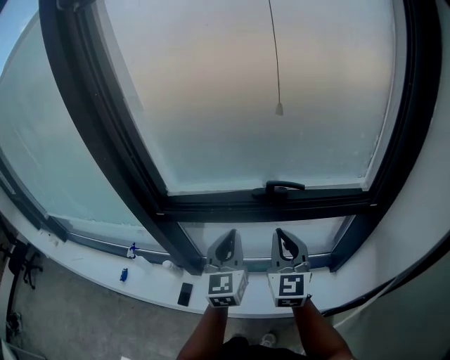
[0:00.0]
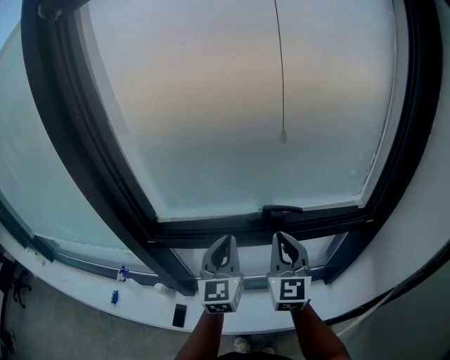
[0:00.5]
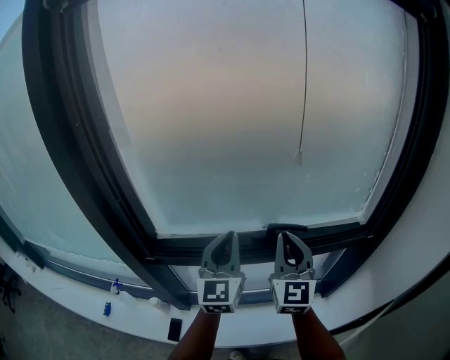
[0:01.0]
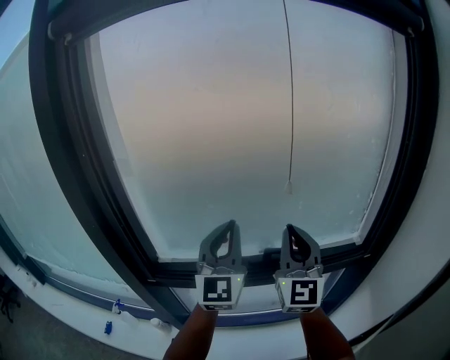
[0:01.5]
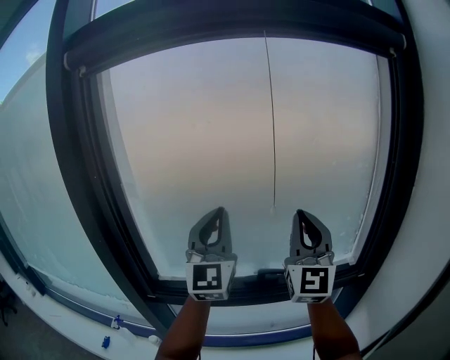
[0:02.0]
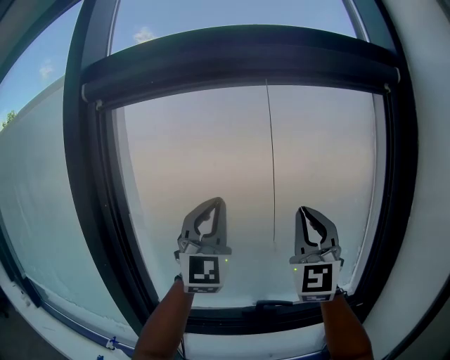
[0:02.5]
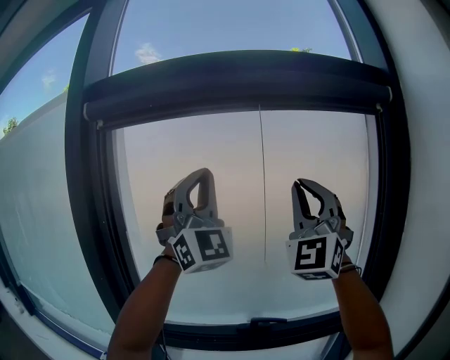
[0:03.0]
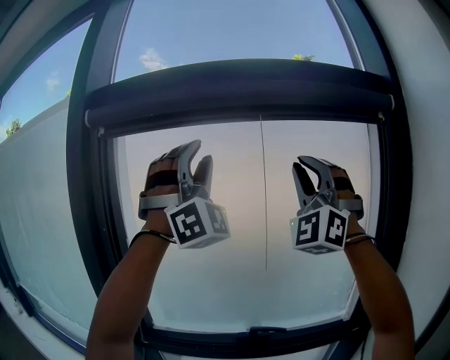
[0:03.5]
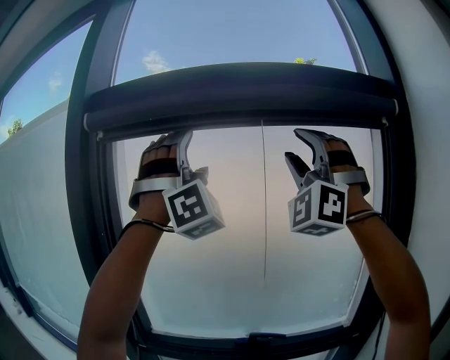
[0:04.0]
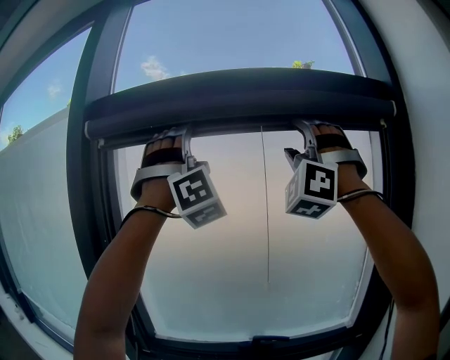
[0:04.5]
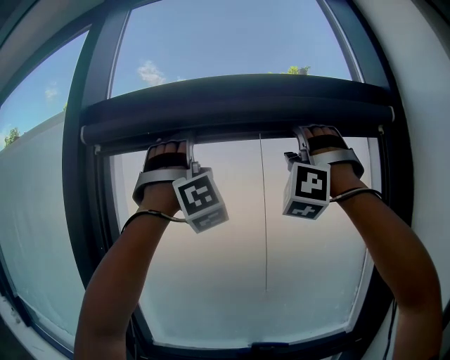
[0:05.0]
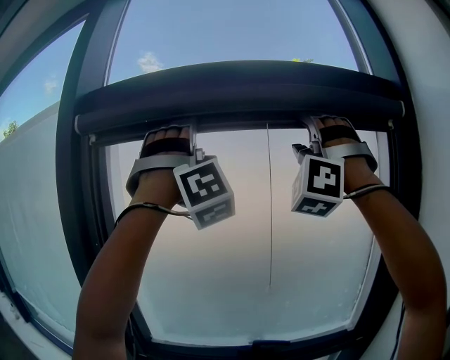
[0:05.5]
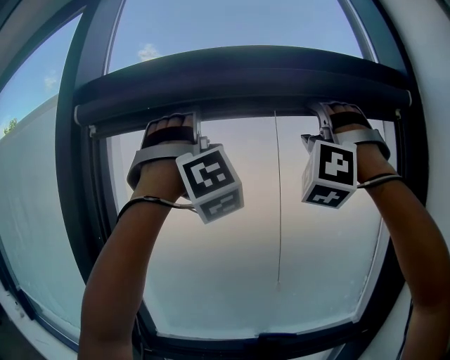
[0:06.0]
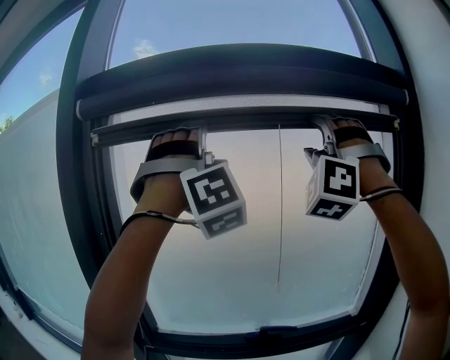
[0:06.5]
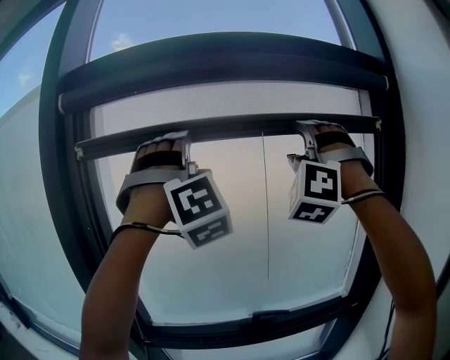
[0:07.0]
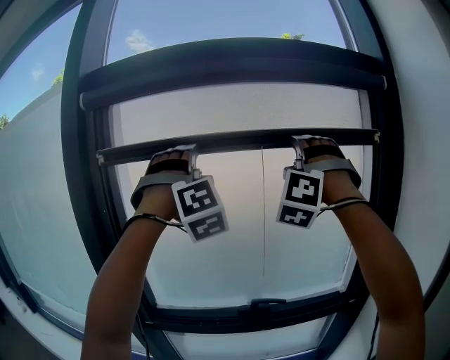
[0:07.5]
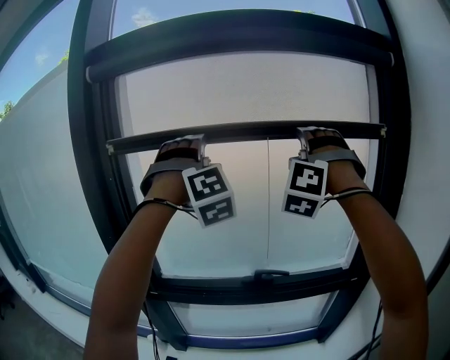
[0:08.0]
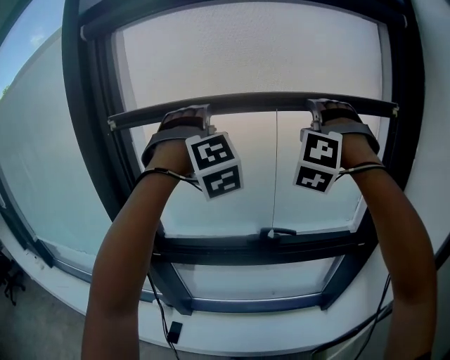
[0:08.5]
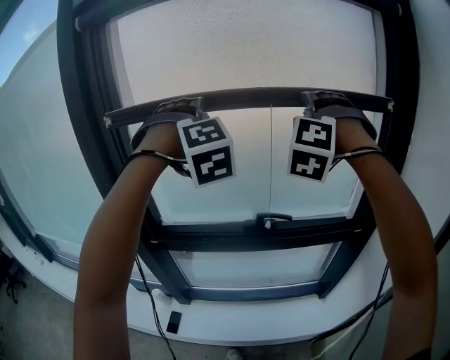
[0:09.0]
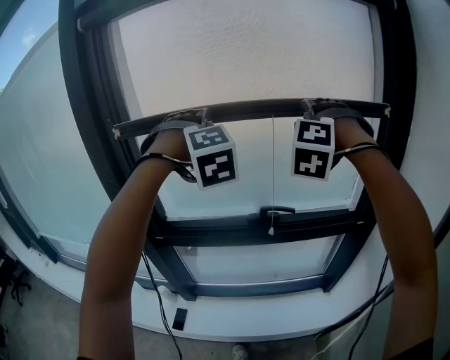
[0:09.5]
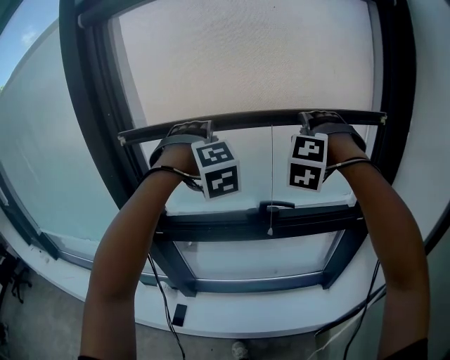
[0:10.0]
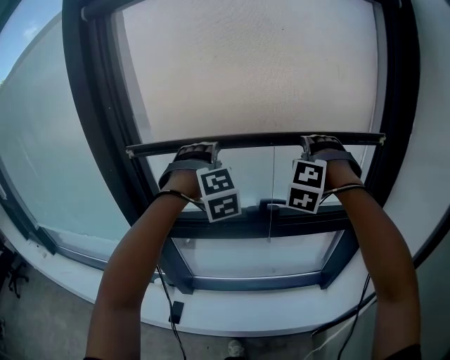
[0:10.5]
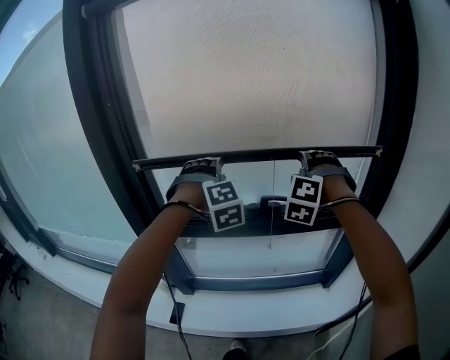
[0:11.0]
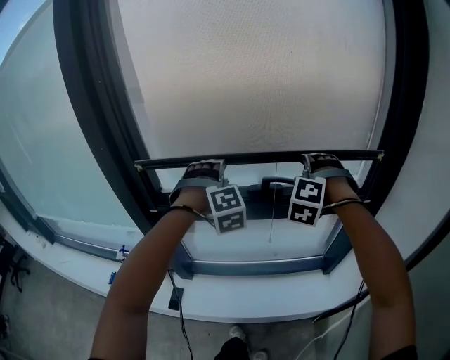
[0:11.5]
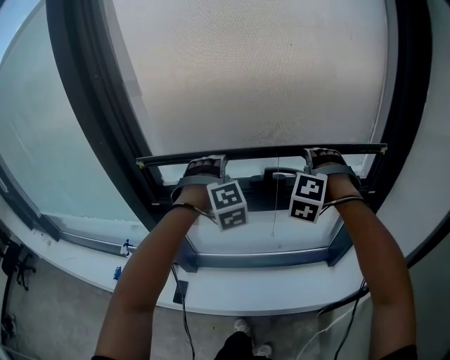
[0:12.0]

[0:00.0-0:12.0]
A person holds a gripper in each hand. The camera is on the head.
0.0 to 2.0 s: The left gripper heads upward and forward, covering about 30 cm, and turns by approximately 40 degrees. Meanwhile the right gripper is displaced upward by approximately 30 cm, and swivels roughly 30 degrees.
2.0 to 4.0 s: Both grippers travel together upward, roughly 30 cm. The right gripper rotates around the line of its fingers by some 70 degrees, counterclockwise from behind, and opens its fingers. The left gripper twists roughly 70 degrees clockwise, seen from behind, and opens.
4.0 to 6.0 s: The right gripper ends up approximately 5 cm from where it was.
6.0 to 8.0 s: The grippers both shift downward by about 20 cm. The left gripper changes its angle by approximately 20 degrees; the right gripper turns by roughly 20 degrees.
8.0 to 10.0 s: Both grippers move downward, approximately 15 cm. The left gripper swivels approximately 20 degrees; the right gripper changes its angle by some 20 degrees.
10.0 to 12.0 s: The grippers both shift downward by about 20 cm.

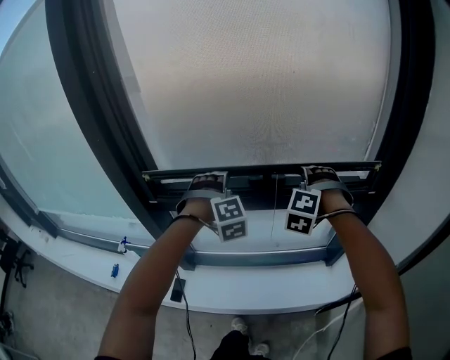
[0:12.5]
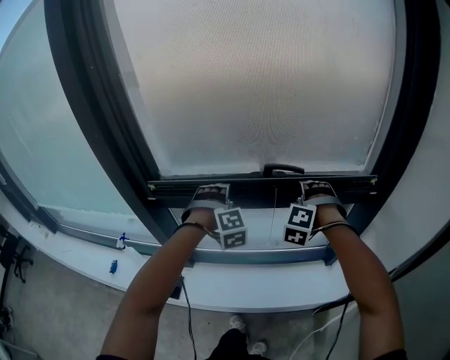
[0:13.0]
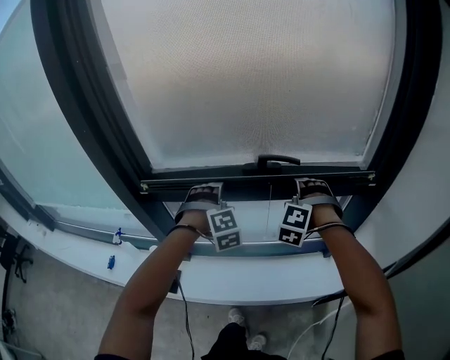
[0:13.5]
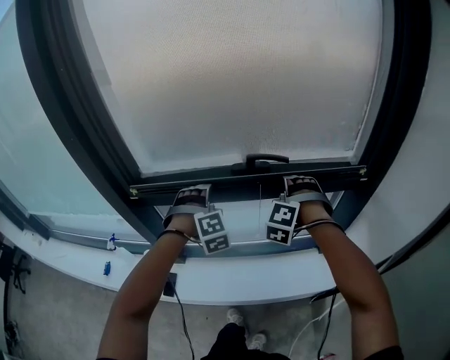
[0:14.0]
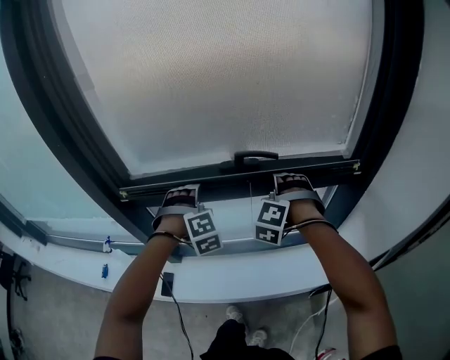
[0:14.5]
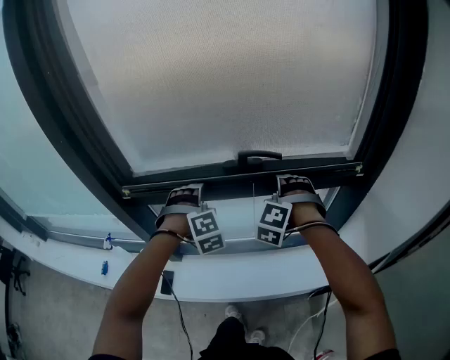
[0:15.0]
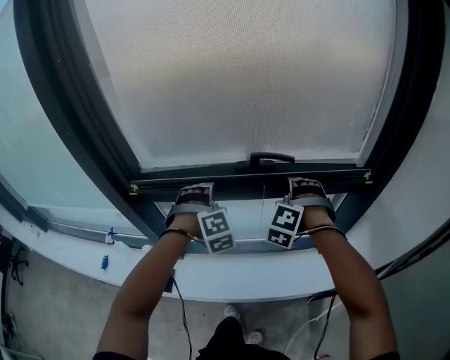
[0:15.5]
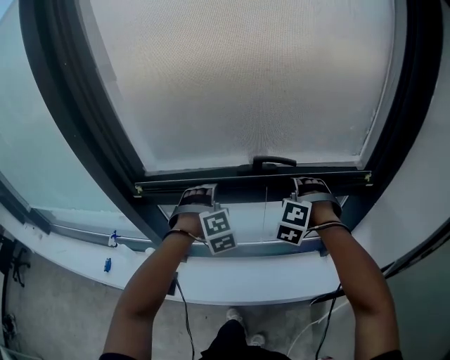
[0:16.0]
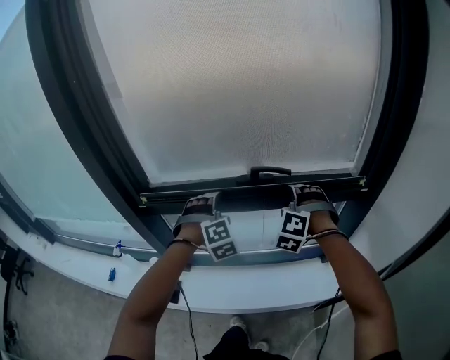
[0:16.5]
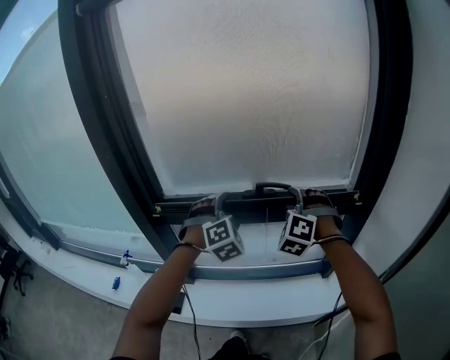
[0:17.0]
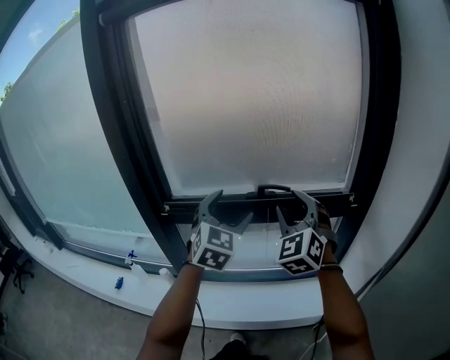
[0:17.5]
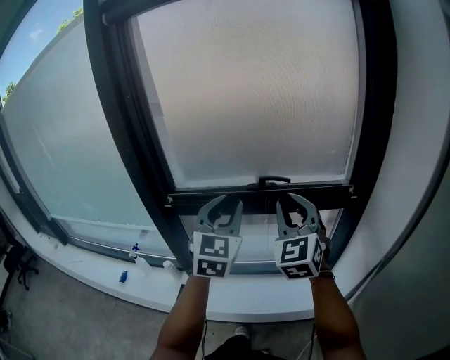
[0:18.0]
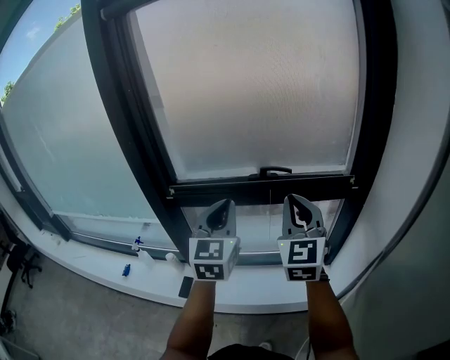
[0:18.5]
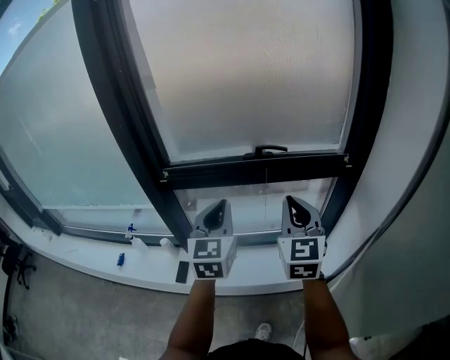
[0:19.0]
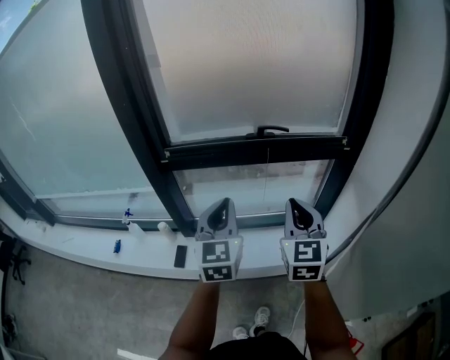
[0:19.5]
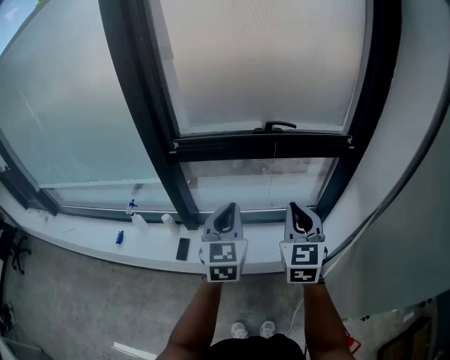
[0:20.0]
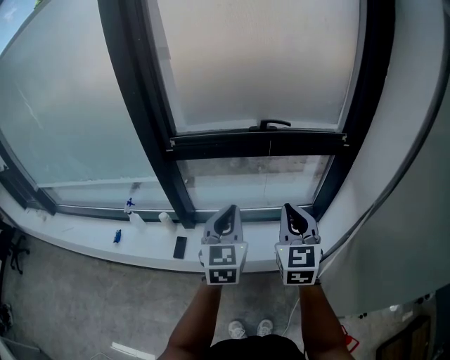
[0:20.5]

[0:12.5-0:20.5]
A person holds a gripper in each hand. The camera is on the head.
12.5 to 14.5 s: Both grippers move downward, some 10 cm.
14.5 to 16.5 s: There are only small adjustments of the grippers.
16.5 to 18.5 s: Both grippers travel together backward and upward, about 30 cm. The right gripper twists some 60 degrees clockwise, seen from behind, and closes up; the left gripper rolls counterclockwise, seen from behind, by approximately 60 degrees, and closes up.
18.5 to 20.5 s: Both grippers travel together backward and downward, roughly 15 cm.

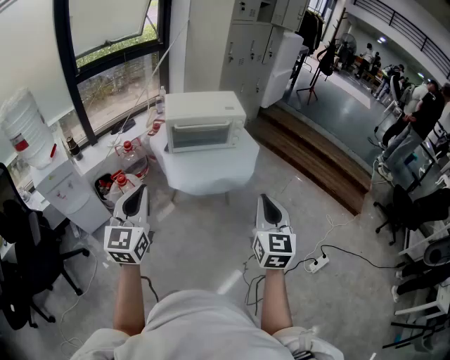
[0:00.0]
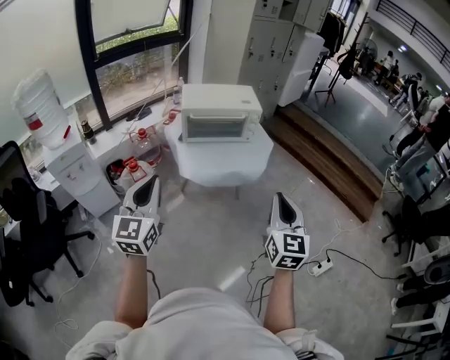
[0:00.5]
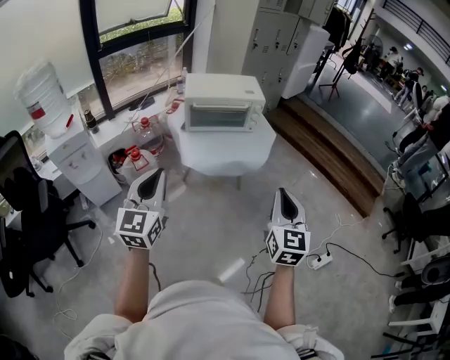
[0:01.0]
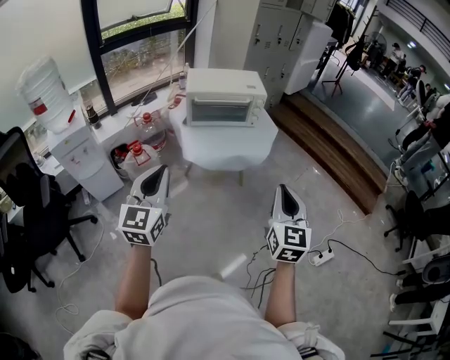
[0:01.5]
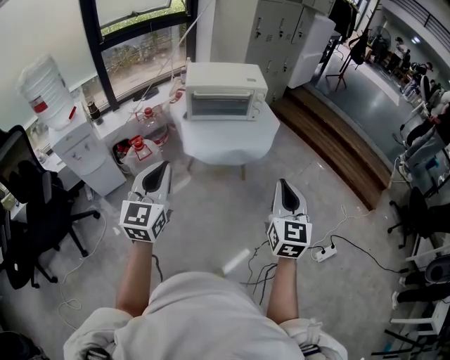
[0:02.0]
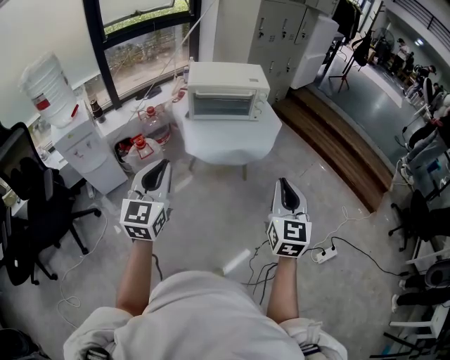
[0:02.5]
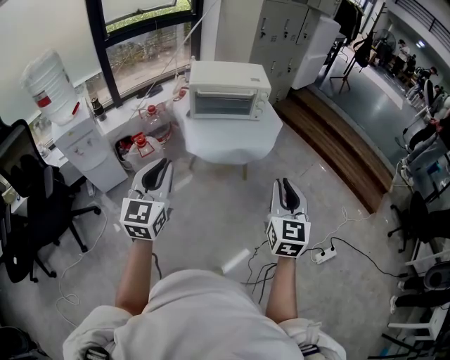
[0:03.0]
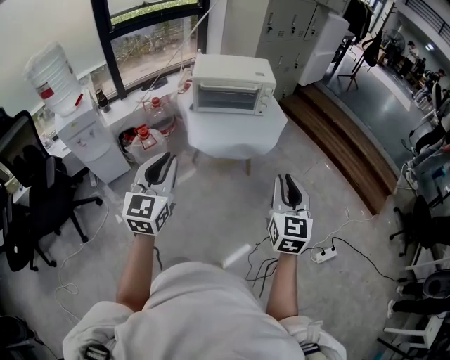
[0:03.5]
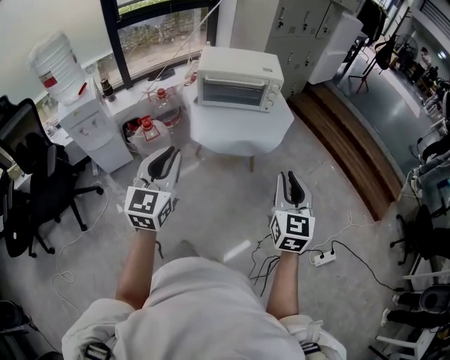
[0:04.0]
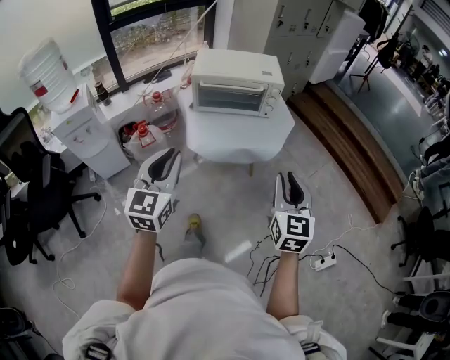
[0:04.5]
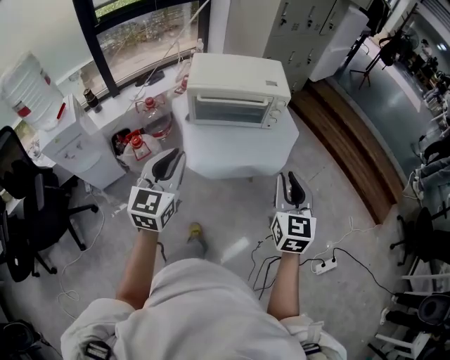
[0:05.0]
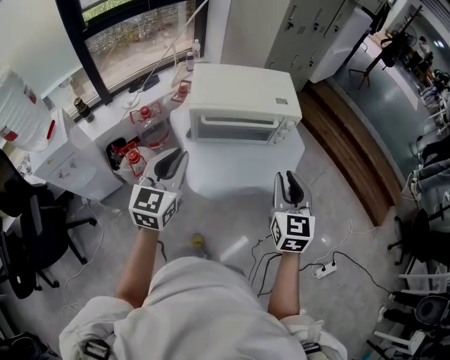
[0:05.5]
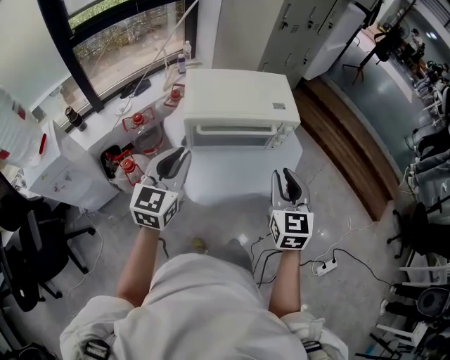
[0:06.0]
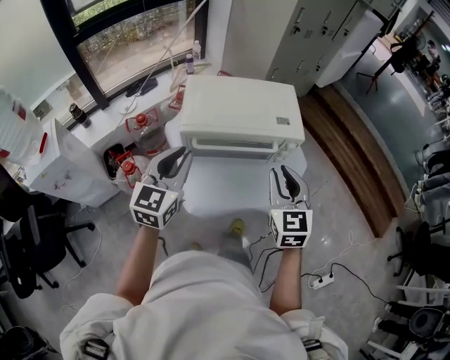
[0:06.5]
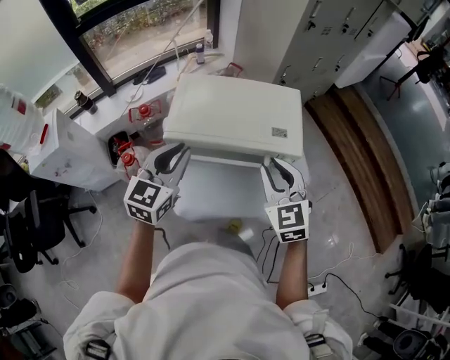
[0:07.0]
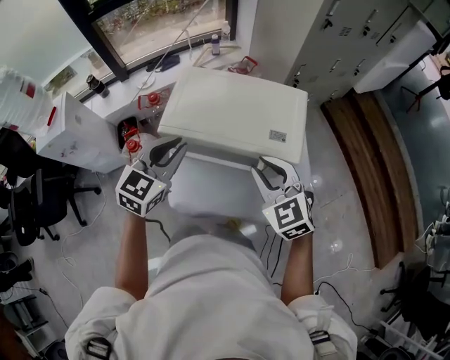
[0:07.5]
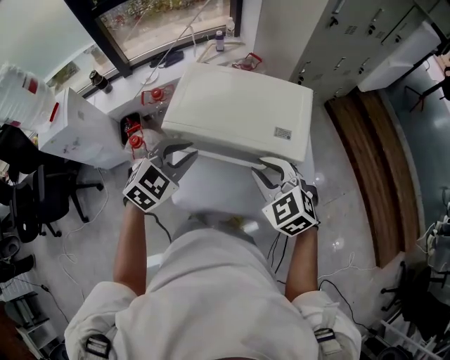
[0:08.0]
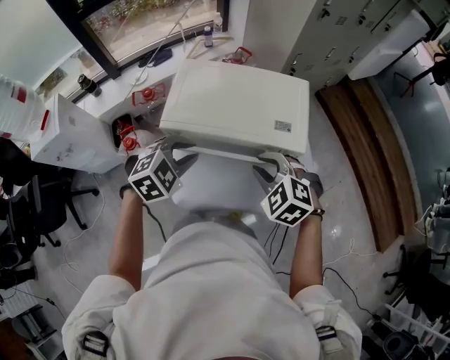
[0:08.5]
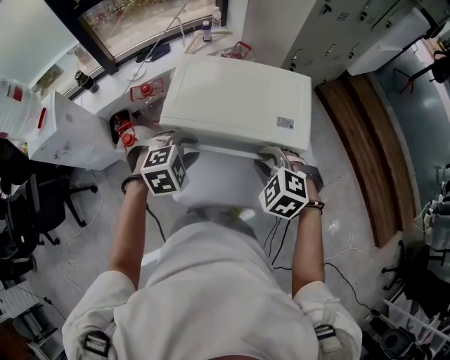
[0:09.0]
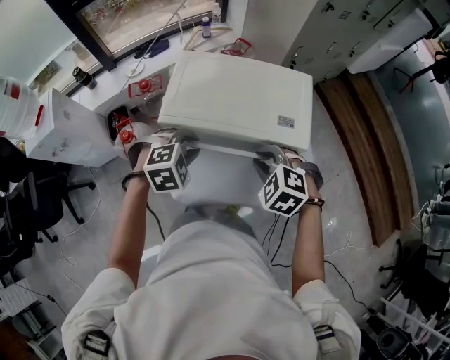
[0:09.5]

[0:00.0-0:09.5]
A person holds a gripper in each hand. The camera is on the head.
0.0 to 2.0 s: The right gripper changes place by some 5 cm. The left gripper travels to the right by approximately 5 cm.
2.0 to 4.0 s: The right gripper shifts by approximately 5 cm.
4.0 to 5.5 s: The two grippers go roughly 35 cm forward.
5.5 to 7.5 s: The right gripper changes place by approximately 25 cm, and turns by about 50 degrees. Meanwhile the left gripper ends up about 25 cm from where it was.
7.5 to 9.5 s: The grippers both shift downward by some 10 cm. The right gripper points its fingers roughly 30 degrees further downward. The left gripper tilts its fingers some 40 degrees downward.
